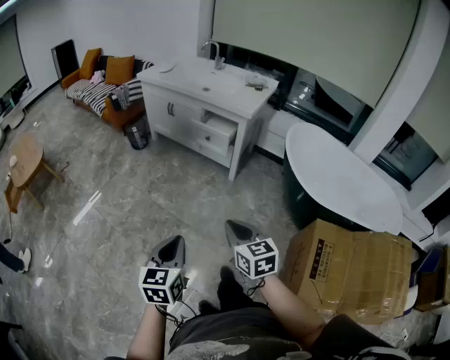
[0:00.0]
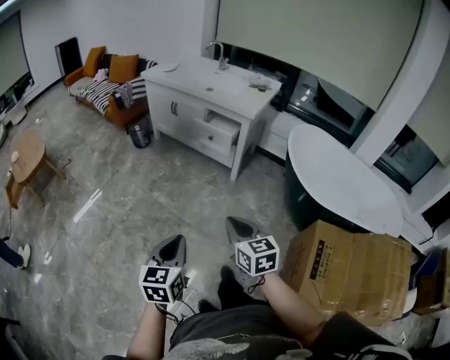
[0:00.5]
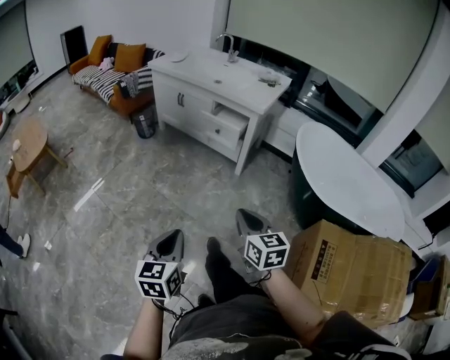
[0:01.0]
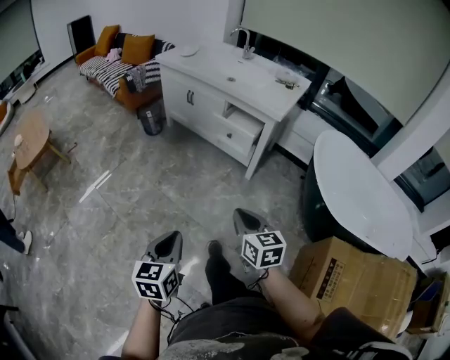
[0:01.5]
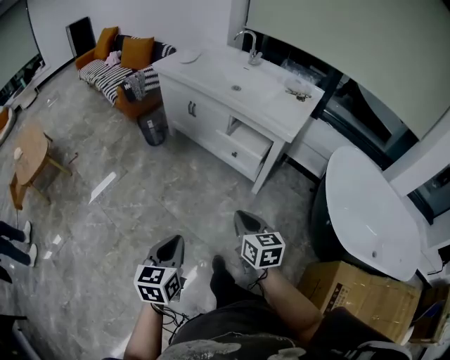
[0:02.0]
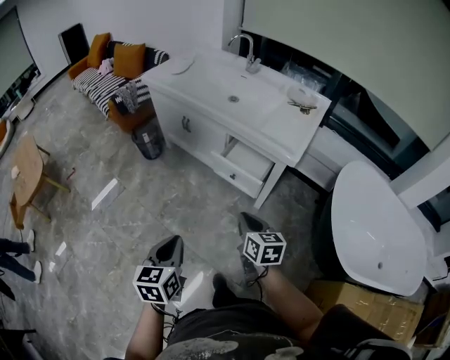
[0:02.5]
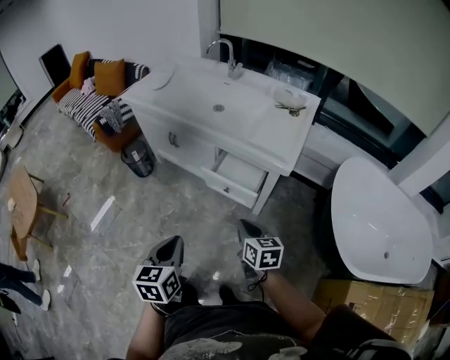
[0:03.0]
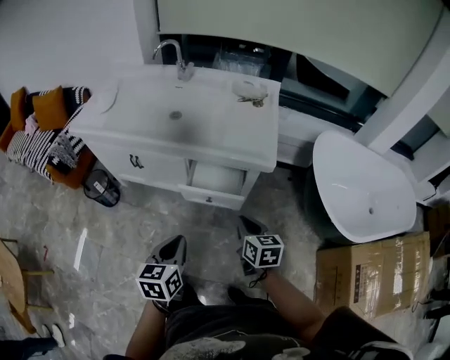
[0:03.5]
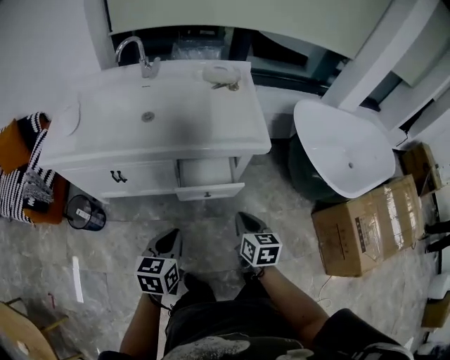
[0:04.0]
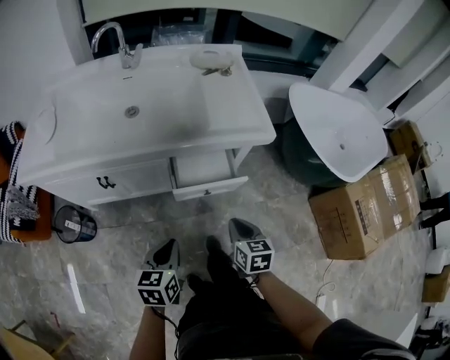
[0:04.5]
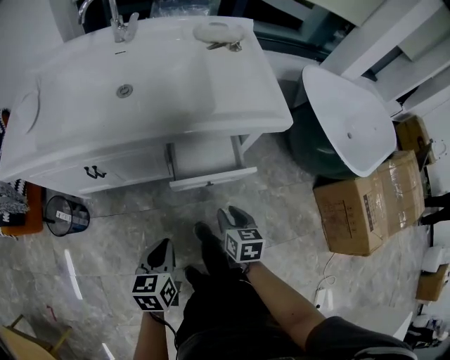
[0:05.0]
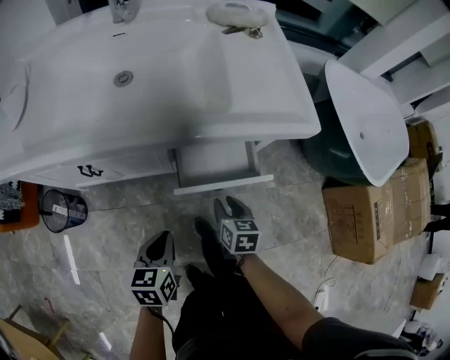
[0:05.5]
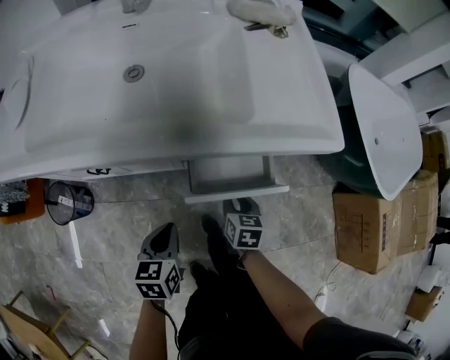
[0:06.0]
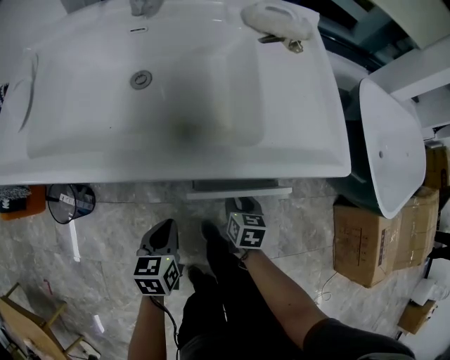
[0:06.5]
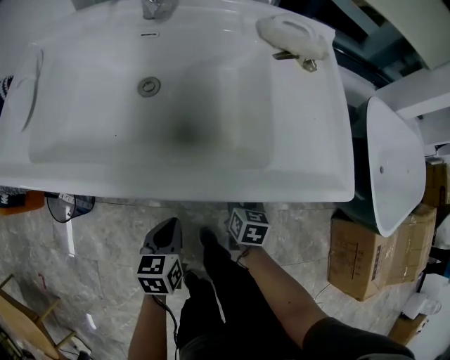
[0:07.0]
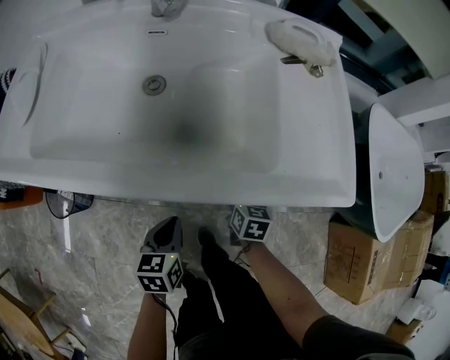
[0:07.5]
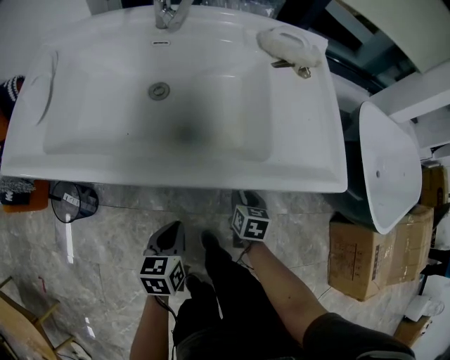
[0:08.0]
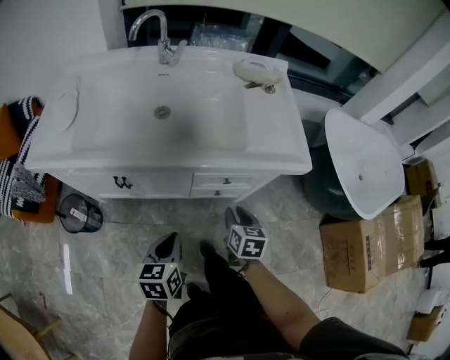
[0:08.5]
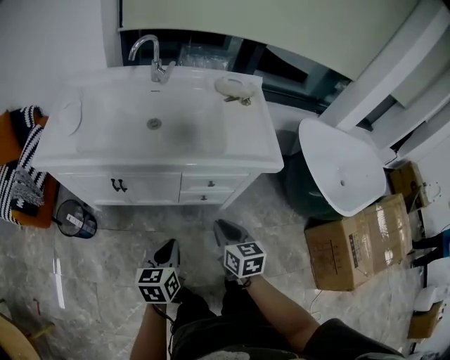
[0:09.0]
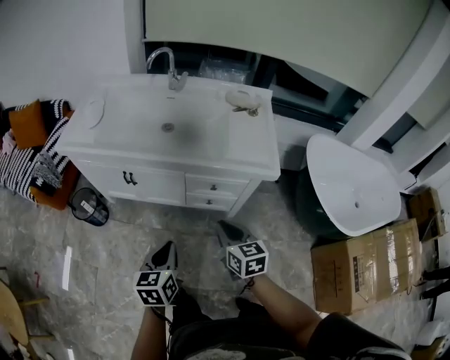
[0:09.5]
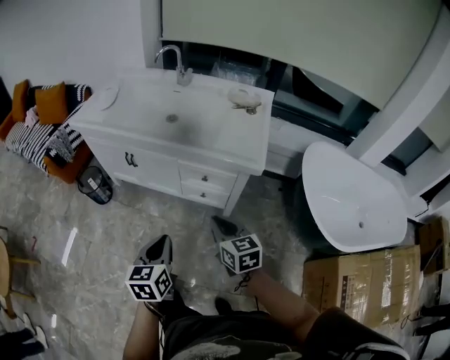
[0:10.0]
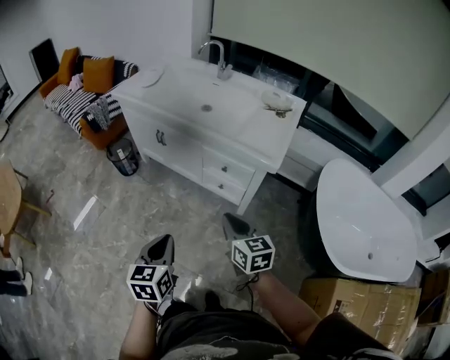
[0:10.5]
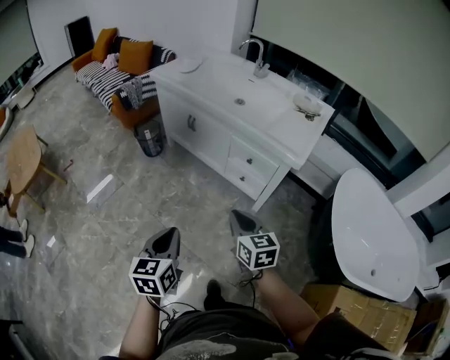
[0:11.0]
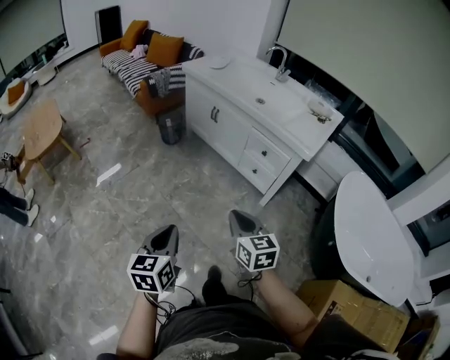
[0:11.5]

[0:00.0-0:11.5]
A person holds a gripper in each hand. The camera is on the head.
0:00.0 to 0:02.0: The two grippers go approximately 30 cm forward.
0:02.0 to 0:04.0: The right gripper moves roughly 30 cm, and changes its angle by about 50 degrees. Meanwhile the left gripper changes place by approximately 50 cm, and rotates about 50 degrees.
0:04.0 to 0:06.0: Both grippers travel together downward and forward, some 25 cm. The right gripper opens.
0:06.0 to 0:07.5: The grippers both shift forward by about 10 cm.
0:07.5 to 0:09.5: The right gripper heads upward and backward, covering approximately 40 cm, swivels about 30 degrees, and closes up. Meanwhile the left gripper shifts approximately 30 cm backward and upward.
0:09.5 to 0:11.5: The right gripper ends up about 35 cm from where it was, and swivels about 40 degrees. The left gripper shifts by about 40 cm, and rotates about 40 degrees.

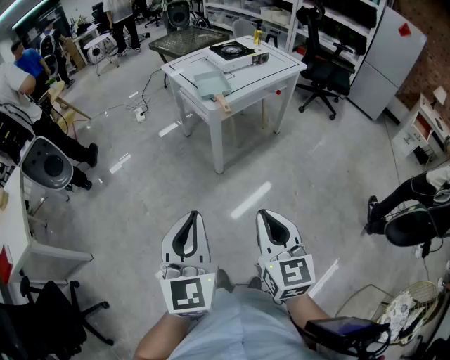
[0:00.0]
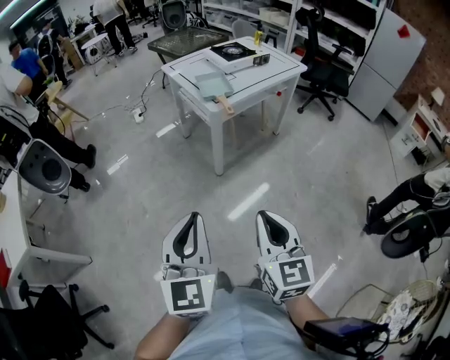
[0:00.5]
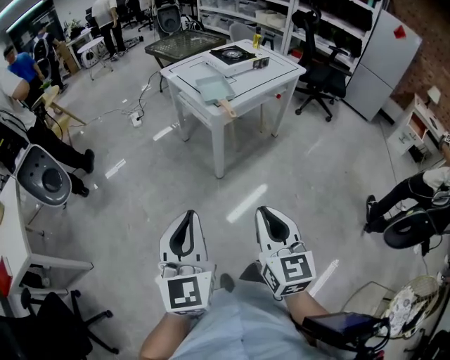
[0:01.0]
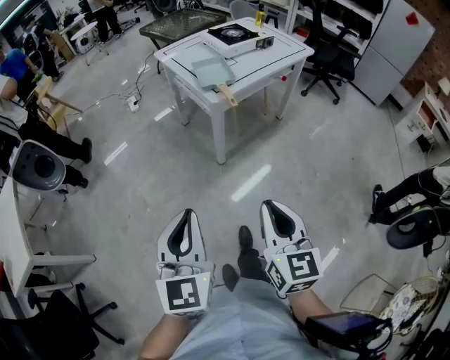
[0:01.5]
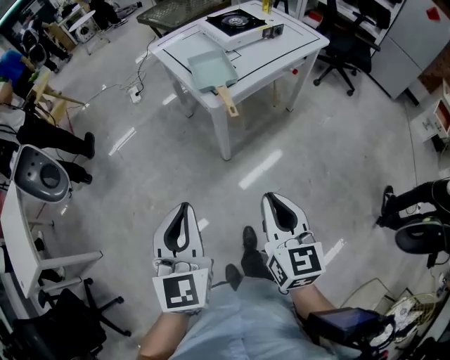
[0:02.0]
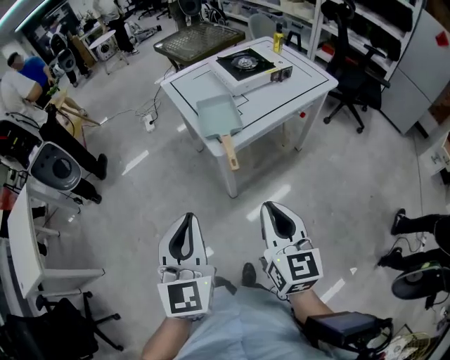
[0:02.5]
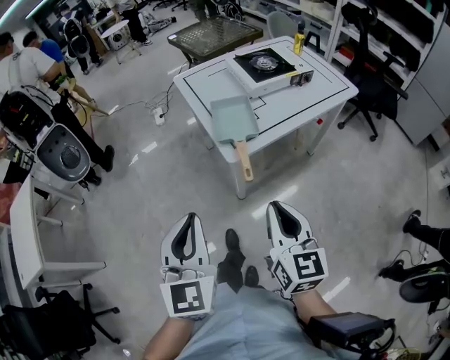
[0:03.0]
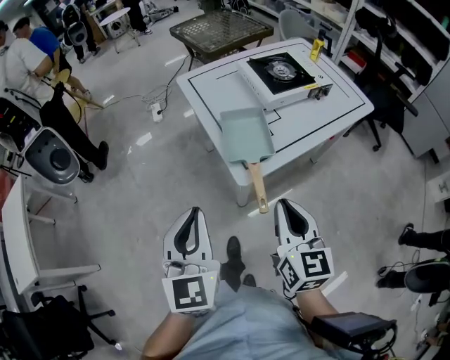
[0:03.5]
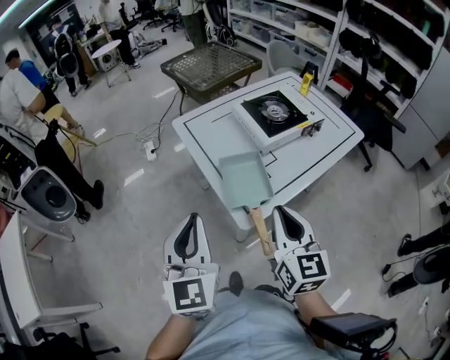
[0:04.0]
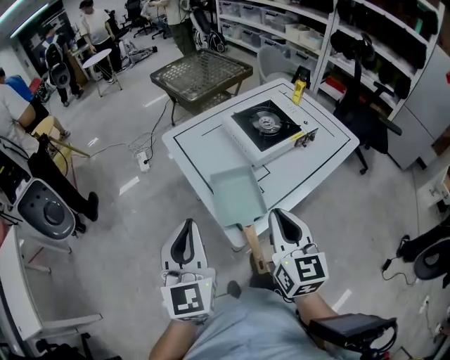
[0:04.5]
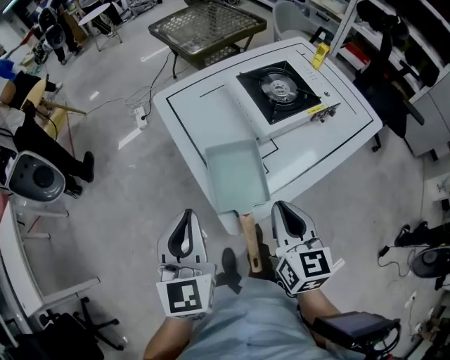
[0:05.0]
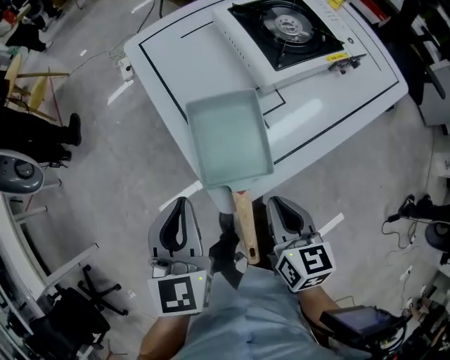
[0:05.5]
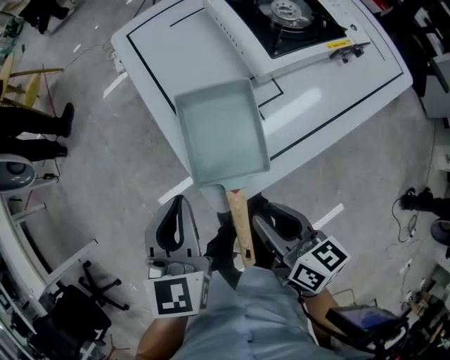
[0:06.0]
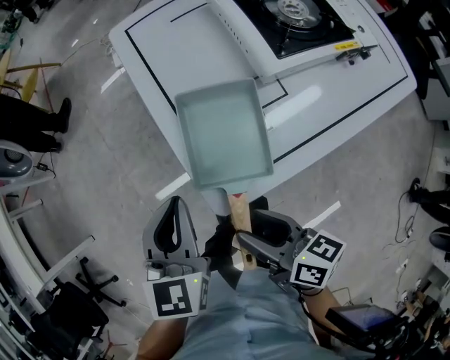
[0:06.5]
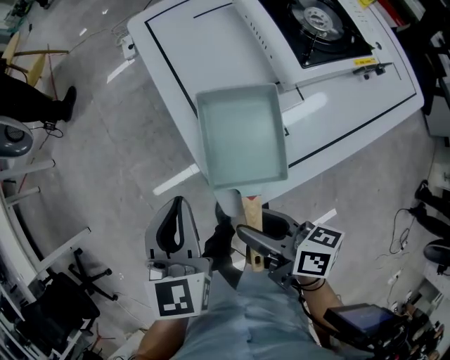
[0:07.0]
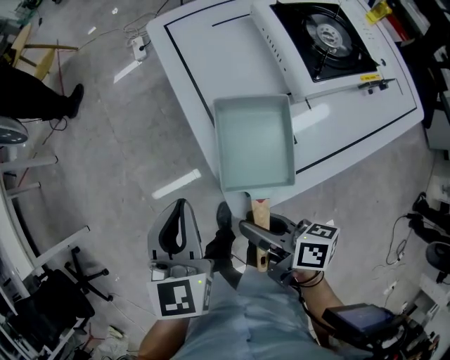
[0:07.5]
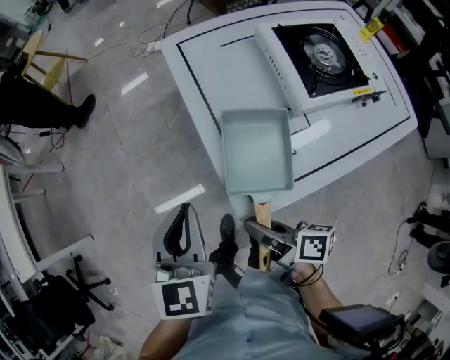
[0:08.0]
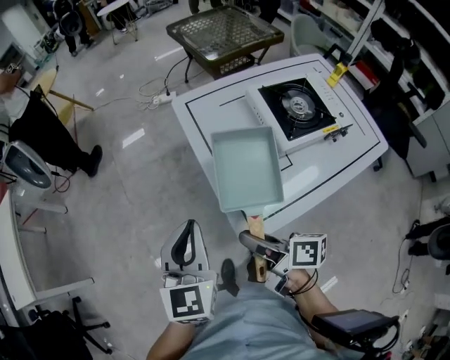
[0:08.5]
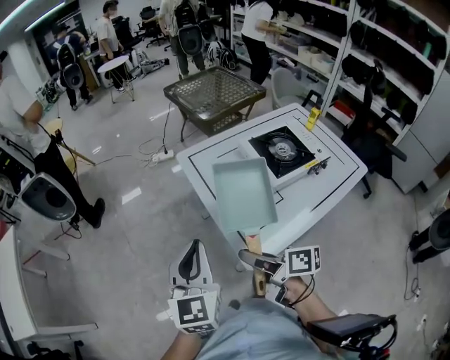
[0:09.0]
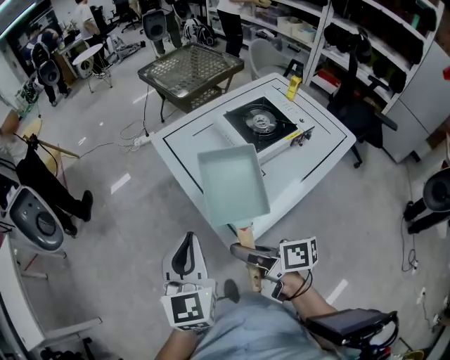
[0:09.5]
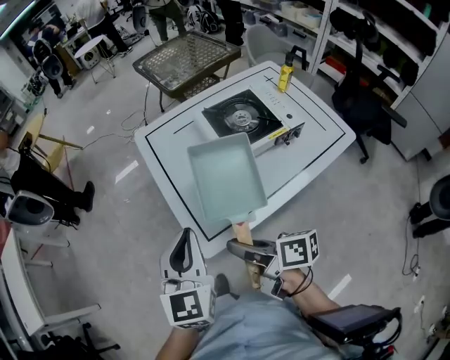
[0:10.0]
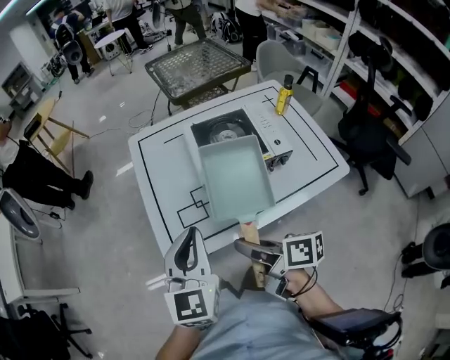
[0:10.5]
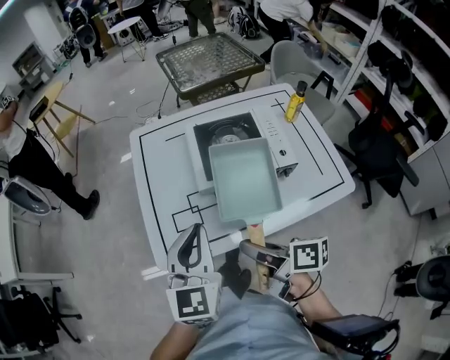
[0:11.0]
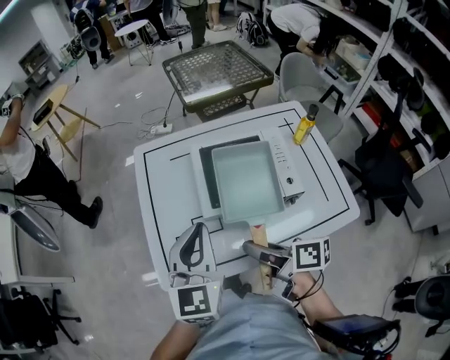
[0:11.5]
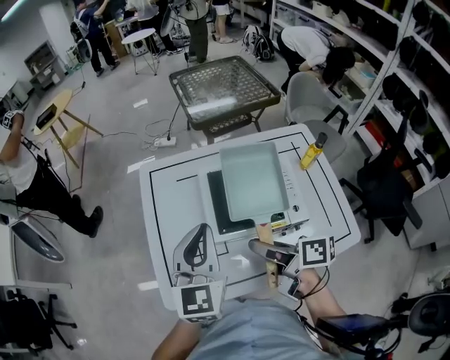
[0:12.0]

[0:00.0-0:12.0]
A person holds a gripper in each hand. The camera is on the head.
0:00.0 to 0:02.0: The grippers both shift forward by roughly 25 cm.
0:02.0 to 0:04.0: Both grippers move forward, about 40 cm.
0:04.0 to 0:06.0: The left gripper is displaced downward, forward and to the right by approximately 25 cm, and turns by about 30 degrees. Meanwhile the right gripper moves downward, approximately 20 cm, and rotates some 50 degrees.
0:06.0 to 0:08.0: Both grippers travel together to the left, roughly 5 cm. The right gripper changes its angle by approximately 30 degrees, and opens, then closes again.
0:08.0 to 0:10.0: The left gripper shifts some 20 cm to the right, upward and backward, while the right gripper is displaced upward and to the right by approximately 15 cm.
0:10.0 to 0:12.0: Both grippers travel together to the right and forward, some 30 cm.

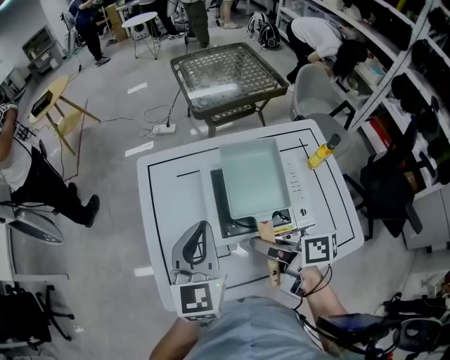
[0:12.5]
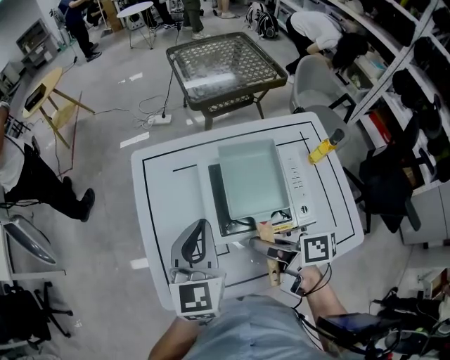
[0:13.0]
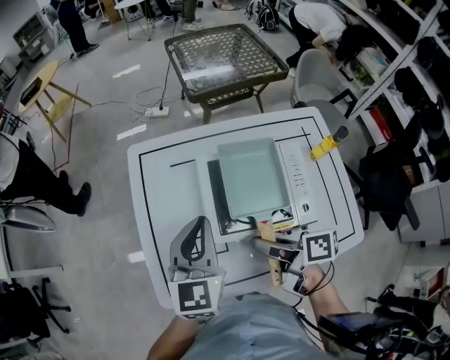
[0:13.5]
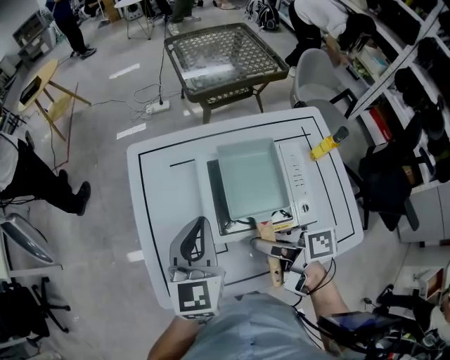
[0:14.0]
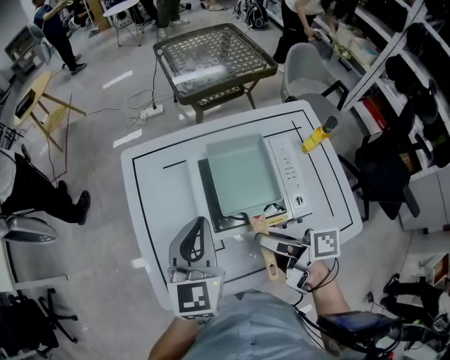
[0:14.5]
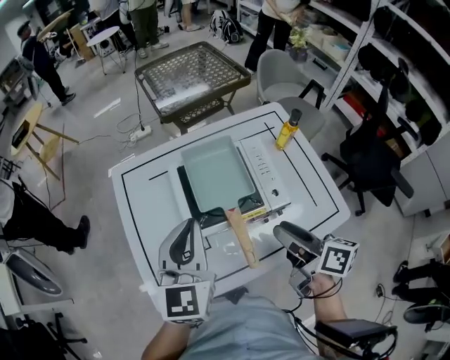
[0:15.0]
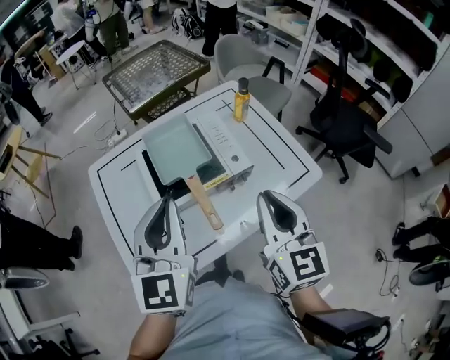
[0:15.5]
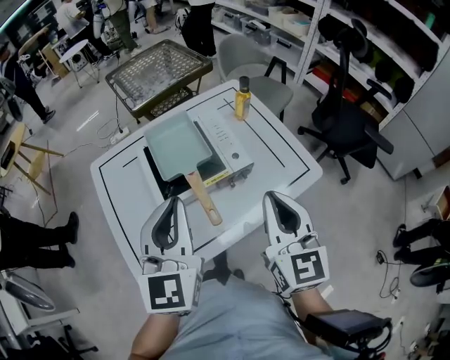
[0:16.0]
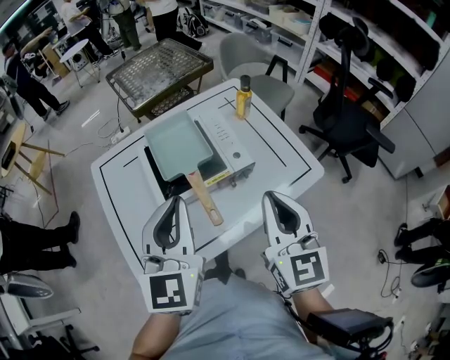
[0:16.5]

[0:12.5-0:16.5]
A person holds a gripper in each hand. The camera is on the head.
0:12.5 to 0:14.5: The right gripper opens up.
0:14.5 to 0:16.5: The left gripper moves approximately 20 cm. The right gripper shifts by roughly 25 cm, turns by roughly 90 degrees, and closes.
